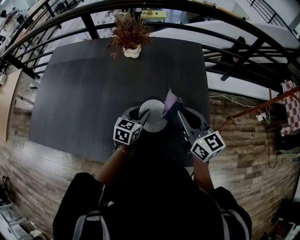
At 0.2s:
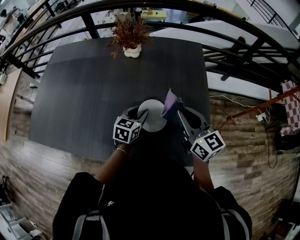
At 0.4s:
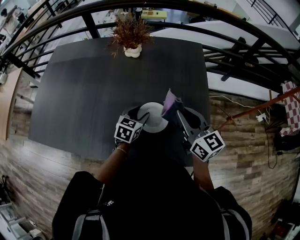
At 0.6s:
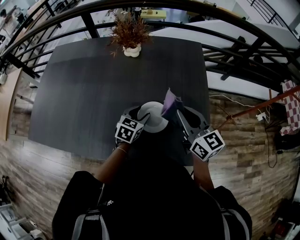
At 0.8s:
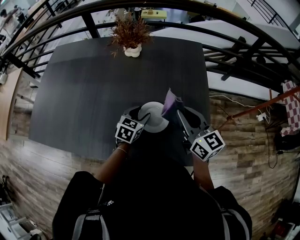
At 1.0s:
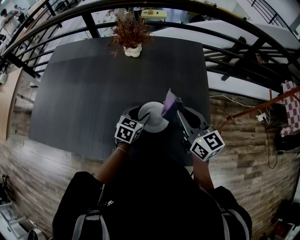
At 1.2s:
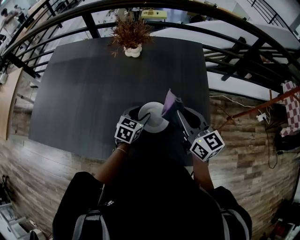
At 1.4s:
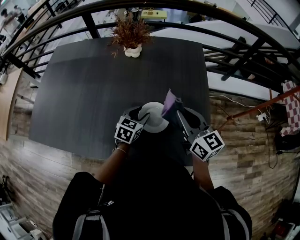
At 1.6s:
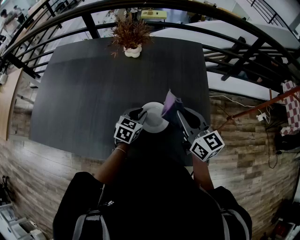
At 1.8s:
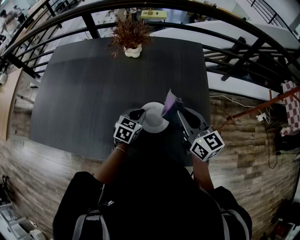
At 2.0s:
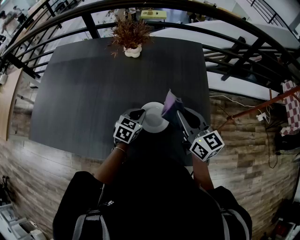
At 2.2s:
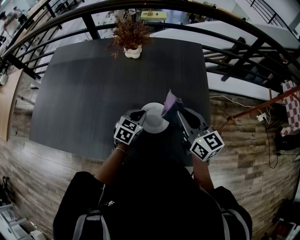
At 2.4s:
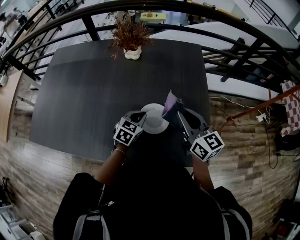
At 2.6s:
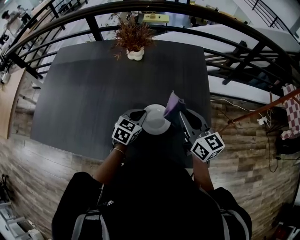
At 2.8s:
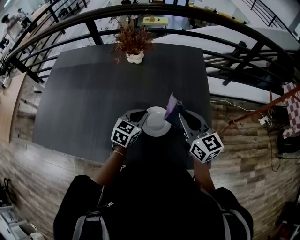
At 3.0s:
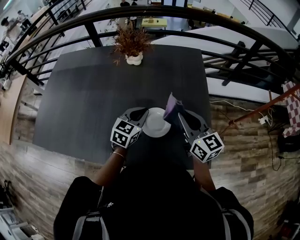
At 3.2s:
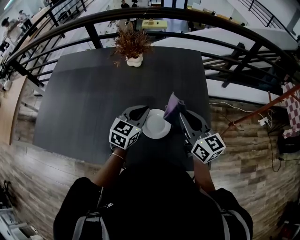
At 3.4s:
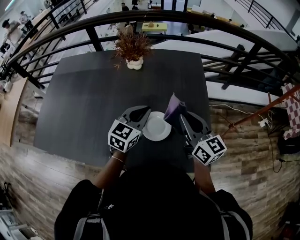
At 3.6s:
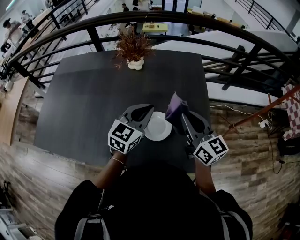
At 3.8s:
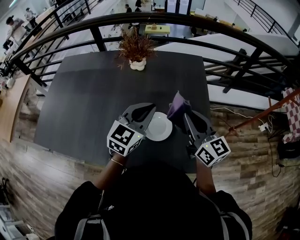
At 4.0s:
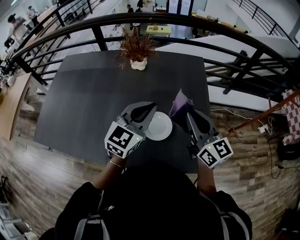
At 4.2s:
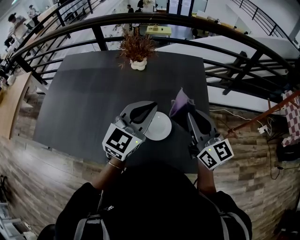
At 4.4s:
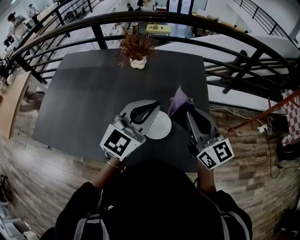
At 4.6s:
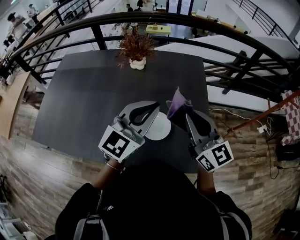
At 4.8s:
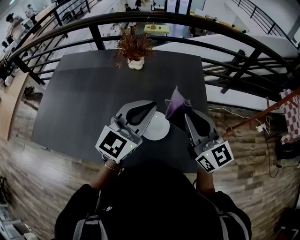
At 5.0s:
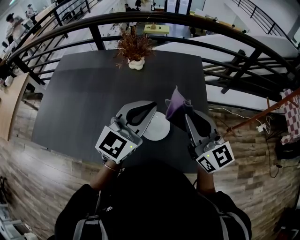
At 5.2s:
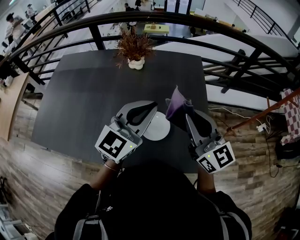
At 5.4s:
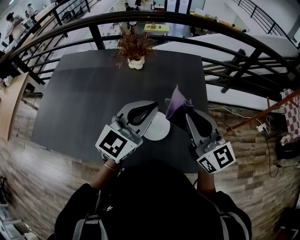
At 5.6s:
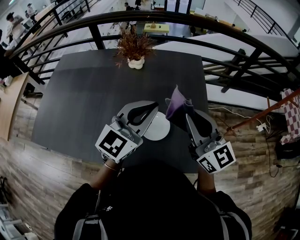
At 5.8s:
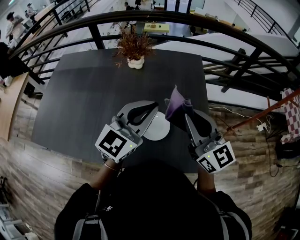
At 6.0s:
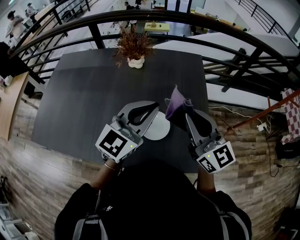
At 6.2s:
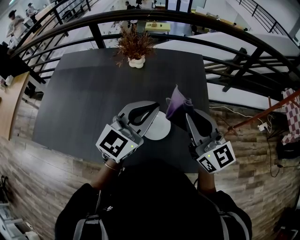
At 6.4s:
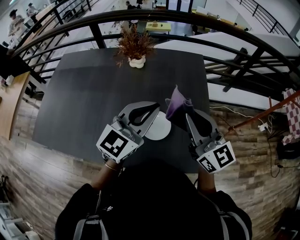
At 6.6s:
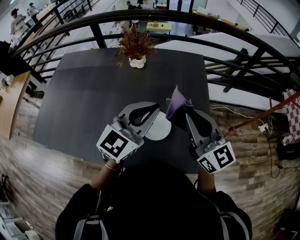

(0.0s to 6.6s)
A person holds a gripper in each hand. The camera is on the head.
0.0s - 1.6s: The left gripper opens, then closes once more.
1.6s - 3.2s: The left gripper is displaced upward by some 10 cm.
3.2s - 5.0s: The right gripper goes roughly 10 cm upward. Meanwhile the left gripper travels upward by roughly 15 cm, and rotates roughly 20 degrees.
5.0s - 6.6s: Both grippers stay about where they are.

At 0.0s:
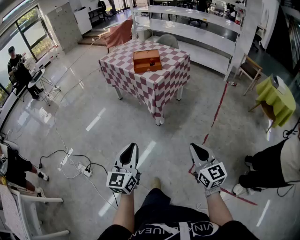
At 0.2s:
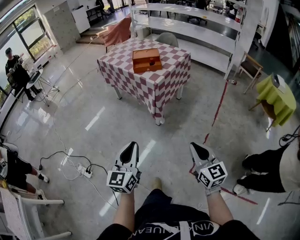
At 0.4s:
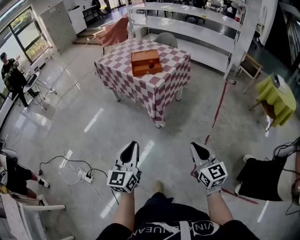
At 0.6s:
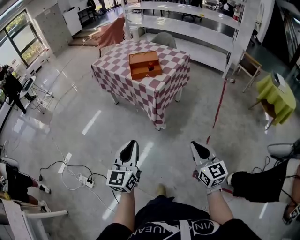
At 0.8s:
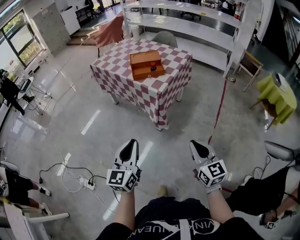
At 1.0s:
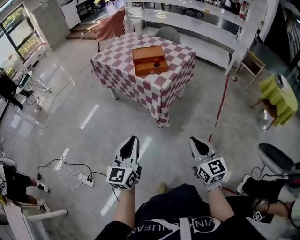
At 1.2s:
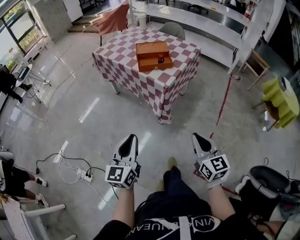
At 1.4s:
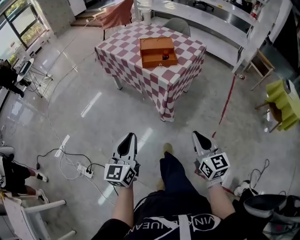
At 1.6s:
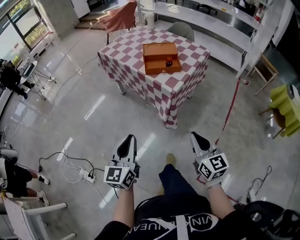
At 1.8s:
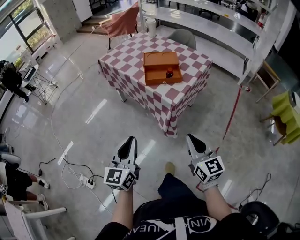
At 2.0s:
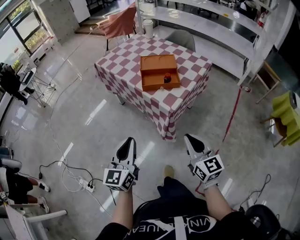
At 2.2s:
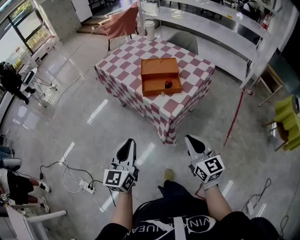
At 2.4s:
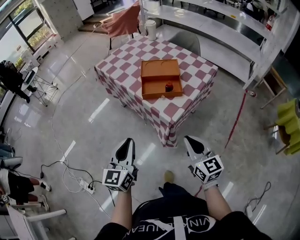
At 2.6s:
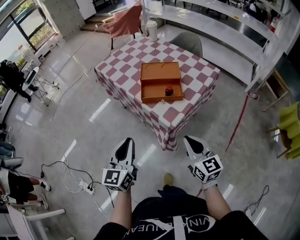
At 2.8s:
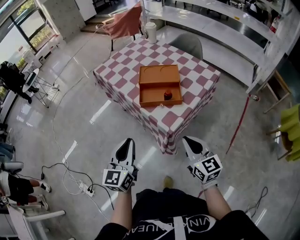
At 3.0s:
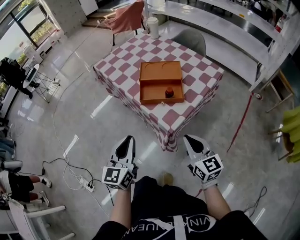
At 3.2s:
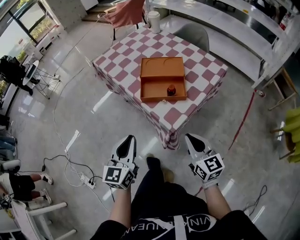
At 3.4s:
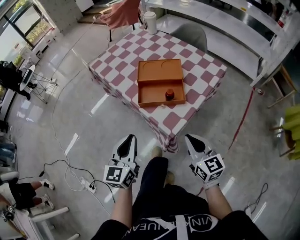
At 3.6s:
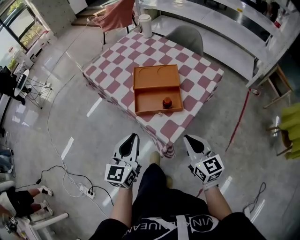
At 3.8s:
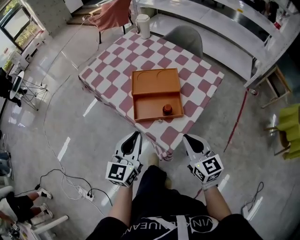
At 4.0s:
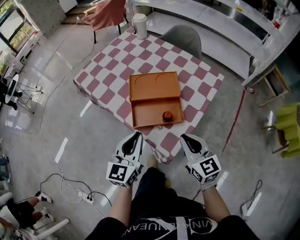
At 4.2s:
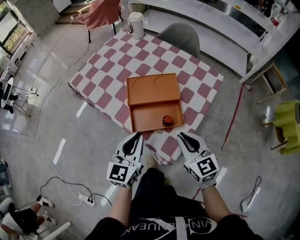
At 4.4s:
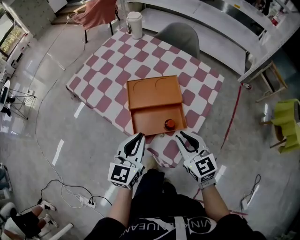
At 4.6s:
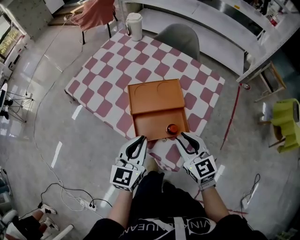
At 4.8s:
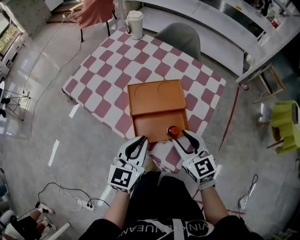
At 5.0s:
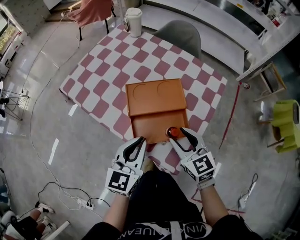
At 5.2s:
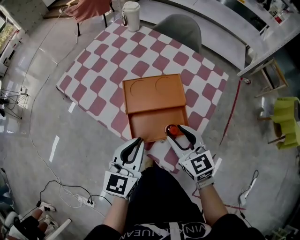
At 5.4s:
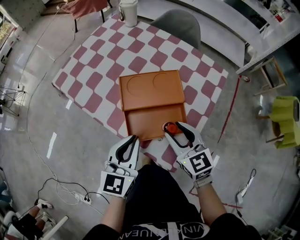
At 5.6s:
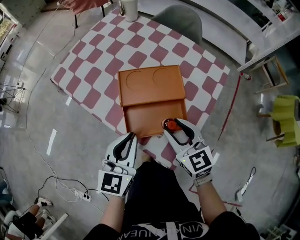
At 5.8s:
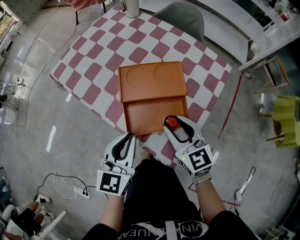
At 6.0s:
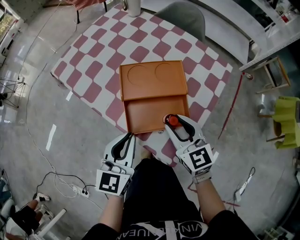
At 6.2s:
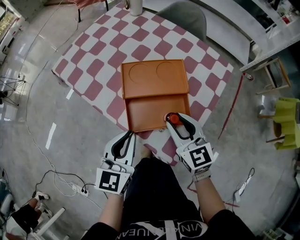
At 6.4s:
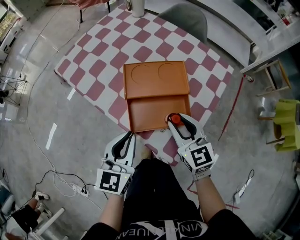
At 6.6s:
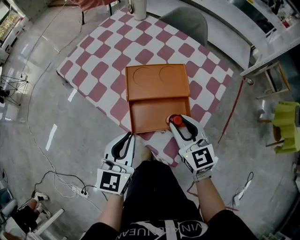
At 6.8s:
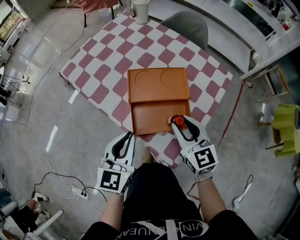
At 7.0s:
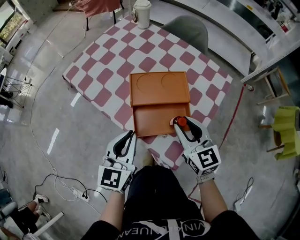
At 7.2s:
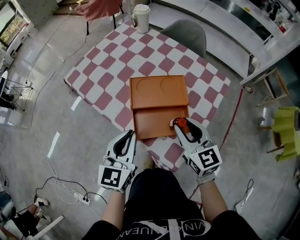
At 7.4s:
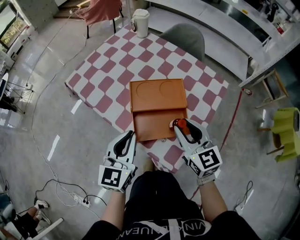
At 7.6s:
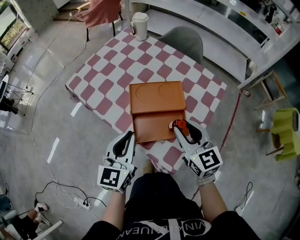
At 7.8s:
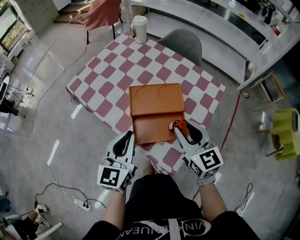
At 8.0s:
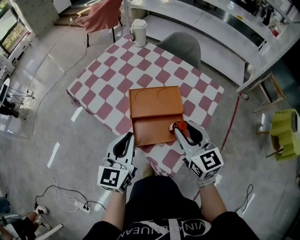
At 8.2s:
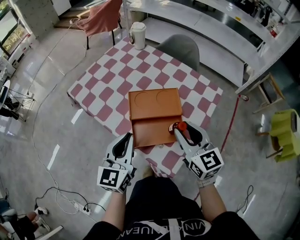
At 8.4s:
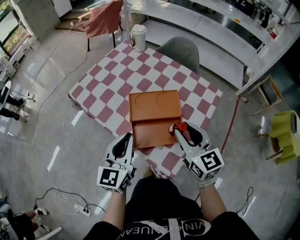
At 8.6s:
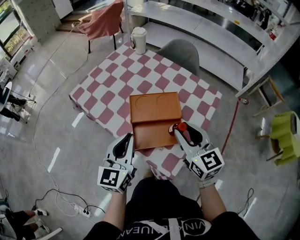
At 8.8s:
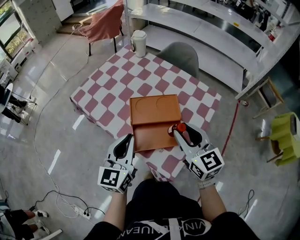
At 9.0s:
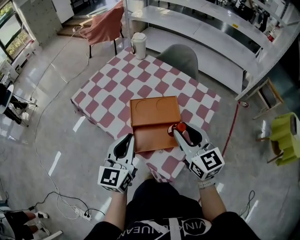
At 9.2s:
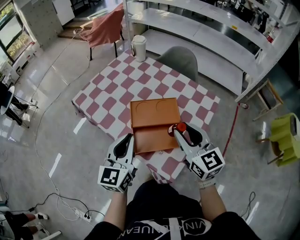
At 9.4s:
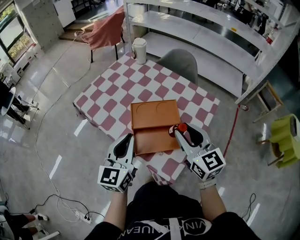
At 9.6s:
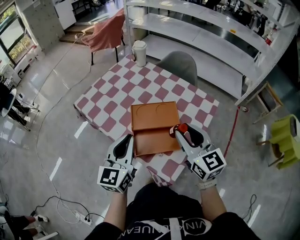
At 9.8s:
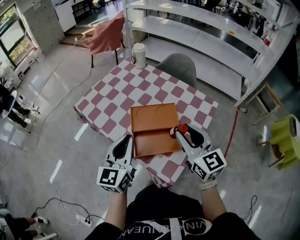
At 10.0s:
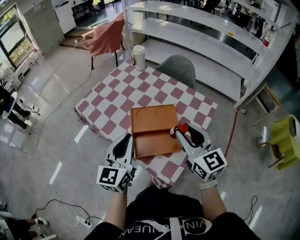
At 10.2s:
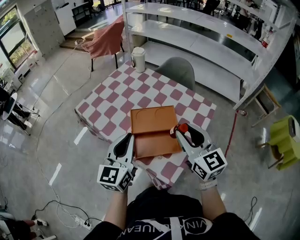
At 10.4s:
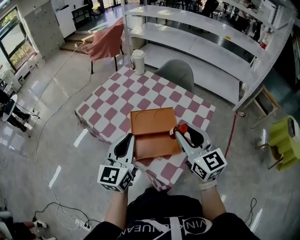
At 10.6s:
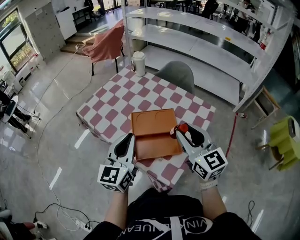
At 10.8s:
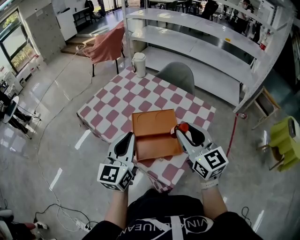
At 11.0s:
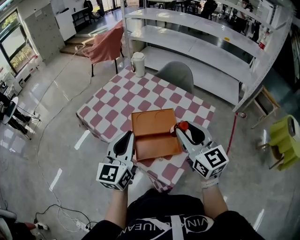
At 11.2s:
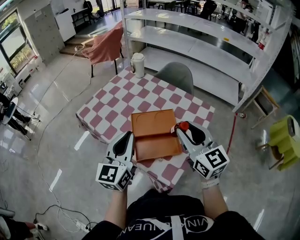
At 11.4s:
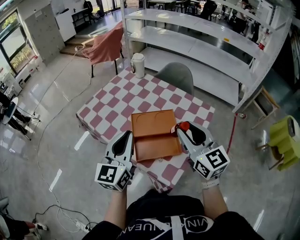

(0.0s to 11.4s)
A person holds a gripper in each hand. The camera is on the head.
0.0s - 1.4s: The left gripper shifts about 25 cm forward and to the left, while the right gripper heads forward, covering approximately 25 cm.
1.4s - 2.8s: The two grippers go some 25 cm forward.
2.8s - 4.2s: The two grippers go some 20 cm forward.
4.2s - 5.6s: The right gripper is displaced forward by about 5 cm, and opens.
5.6s - 7.2s: The right gripper changes place by about 5 cm.
7.2s - 8.6s: The right gripper travels upward by about 5 cm.
8.6s - 10.0s: The two grippers go roughly 5 cm upward.
10.0s - 11.4s: The grippers stay close to where they were, moving slightly.

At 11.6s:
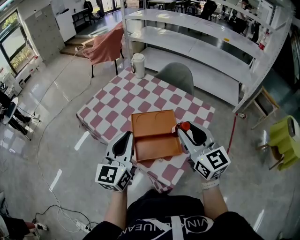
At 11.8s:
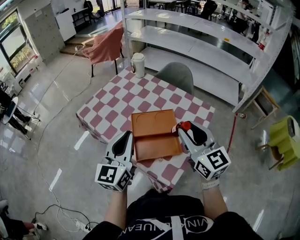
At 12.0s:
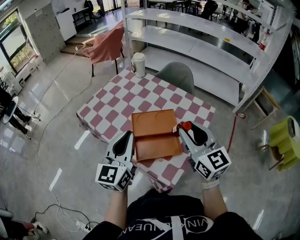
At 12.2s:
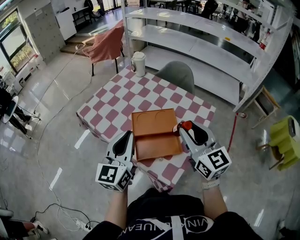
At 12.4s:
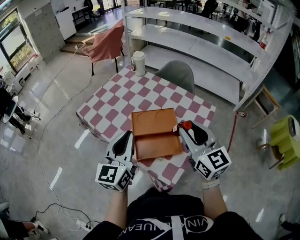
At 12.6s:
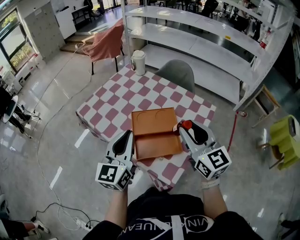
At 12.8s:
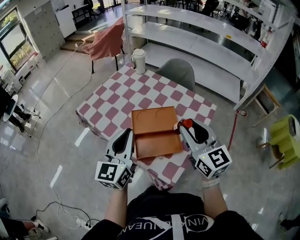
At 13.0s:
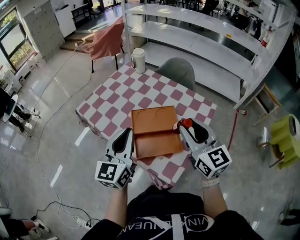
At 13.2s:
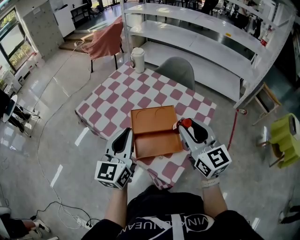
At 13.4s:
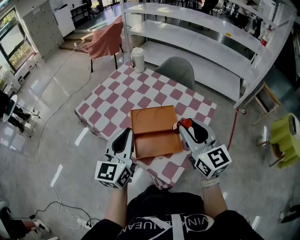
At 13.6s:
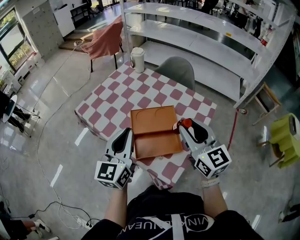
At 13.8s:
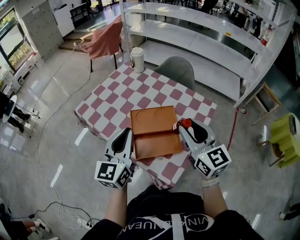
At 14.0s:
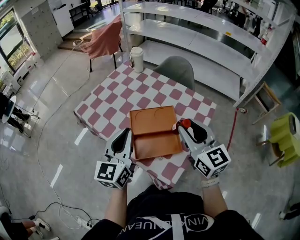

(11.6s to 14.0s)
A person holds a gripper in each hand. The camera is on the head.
11.6s - 12.8s: Neither gripper changes place.
12.8s - 14.0s: The grippers make only small movements.

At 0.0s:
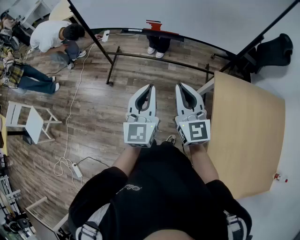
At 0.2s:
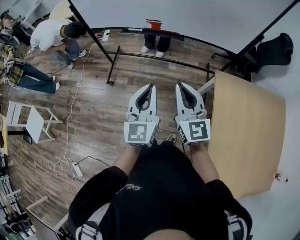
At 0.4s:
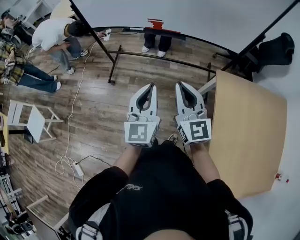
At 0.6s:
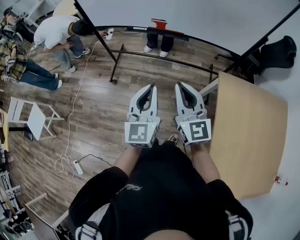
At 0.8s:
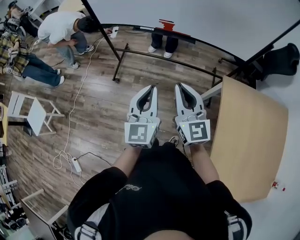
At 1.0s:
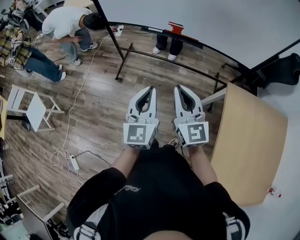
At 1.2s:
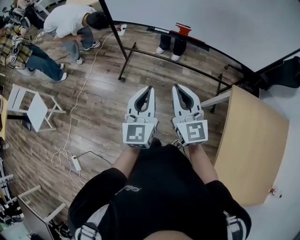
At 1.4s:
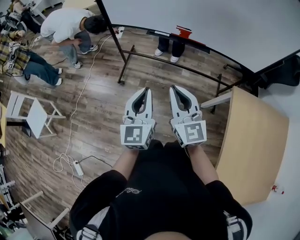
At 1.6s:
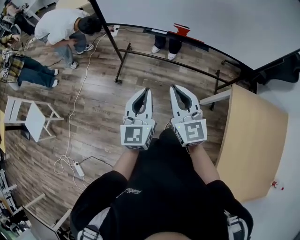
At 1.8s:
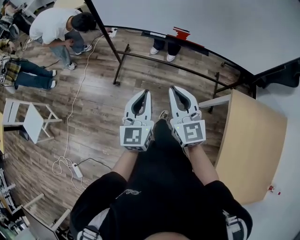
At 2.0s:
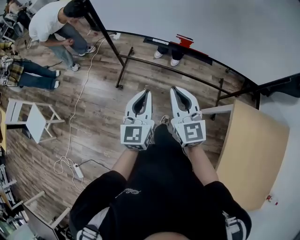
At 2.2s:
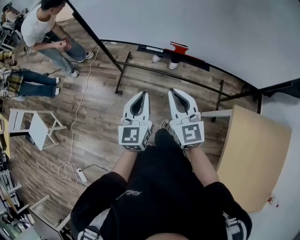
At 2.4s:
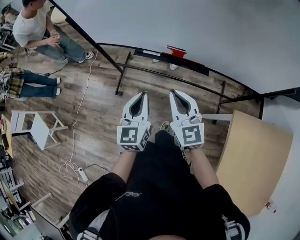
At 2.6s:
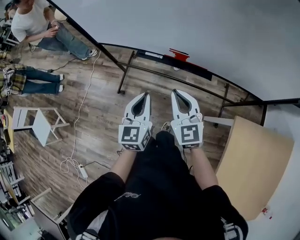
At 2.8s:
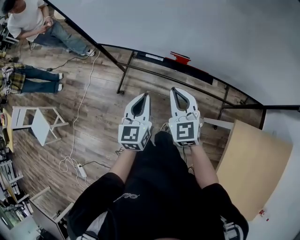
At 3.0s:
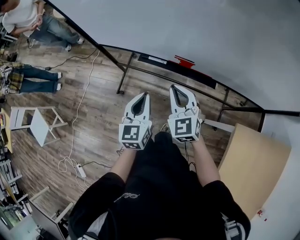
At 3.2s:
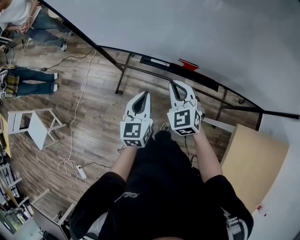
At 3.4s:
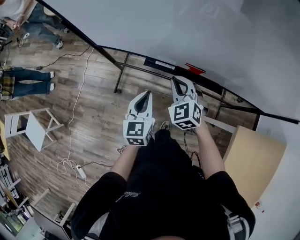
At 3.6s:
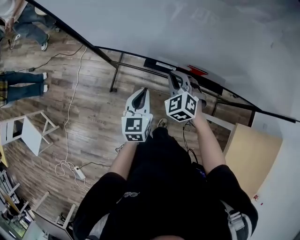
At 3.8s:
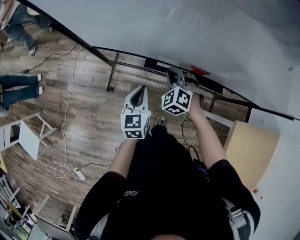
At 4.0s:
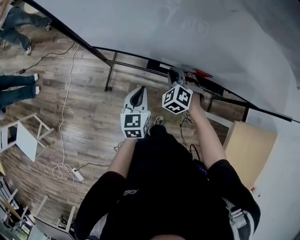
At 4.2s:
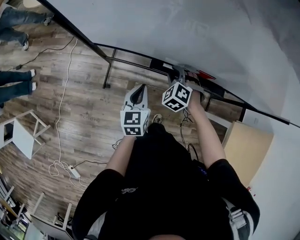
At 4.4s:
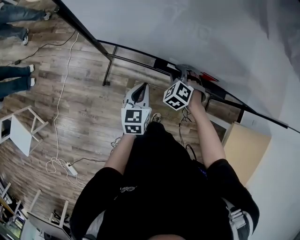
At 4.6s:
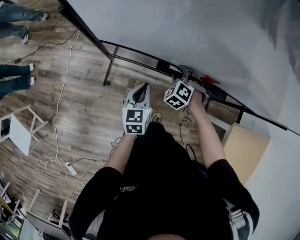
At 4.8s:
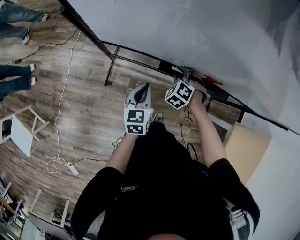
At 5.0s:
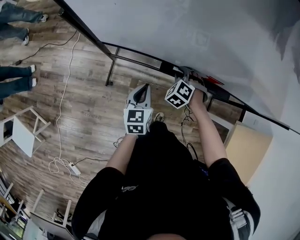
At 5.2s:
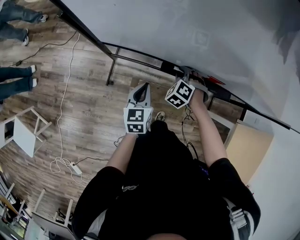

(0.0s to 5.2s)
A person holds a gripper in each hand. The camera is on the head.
0.0s - 1.8s: The two grippers go some 20 cm to the left and forward.
1.8s - 3.4s: Both grippers travel together forward, approximately 30 cm. The right gripper swivels about 40 degrees.
3.4s - 5.2s: The left gripper goes about 20 cm to the left, downward and forward, while the right gripper heads downward and forward, covering approximately 20 cm, and turns by about 40 degrees.
